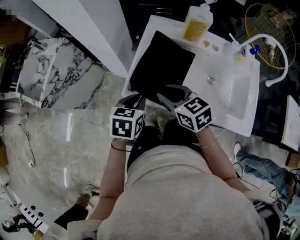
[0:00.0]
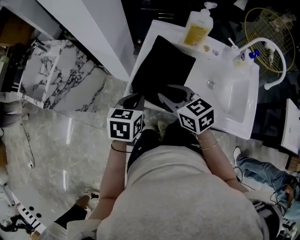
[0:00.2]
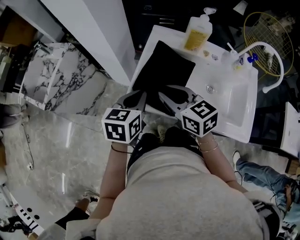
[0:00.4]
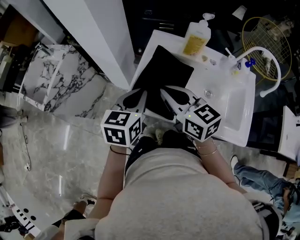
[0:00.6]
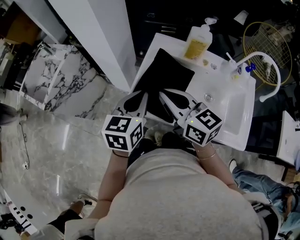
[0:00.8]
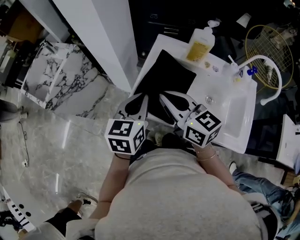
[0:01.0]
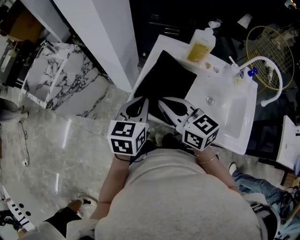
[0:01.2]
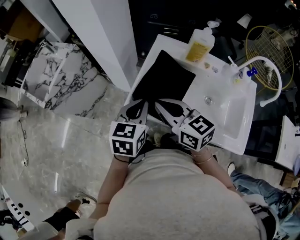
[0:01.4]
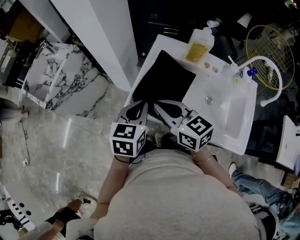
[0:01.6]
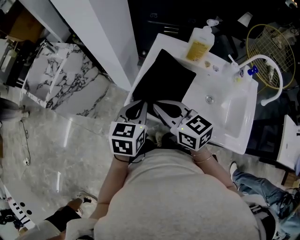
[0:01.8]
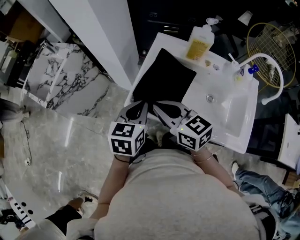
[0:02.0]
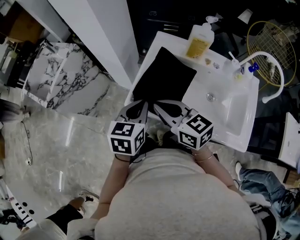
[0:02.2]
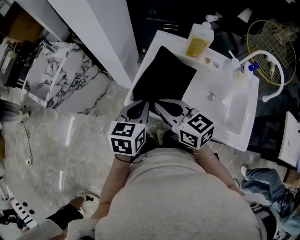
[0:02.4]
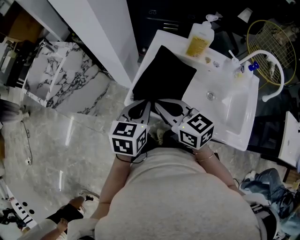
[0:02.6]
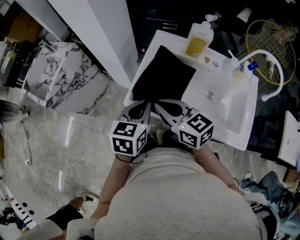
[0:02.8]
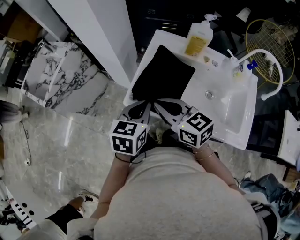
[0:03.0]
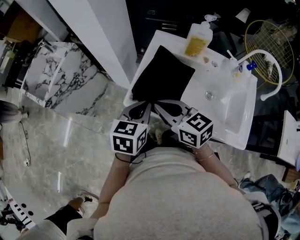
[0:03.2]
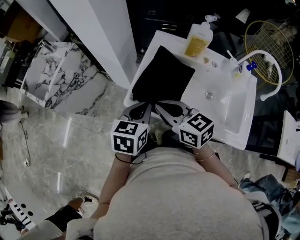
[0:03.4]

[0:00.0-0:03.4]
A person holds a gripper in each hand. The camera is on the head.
0.0 to 1.6 s: The grippers both shift upward by about 10 cm. The right gripper closes its fingers.
1.6 to 3.4 s: The grippers move only a little.

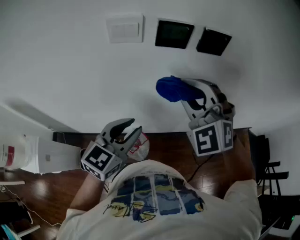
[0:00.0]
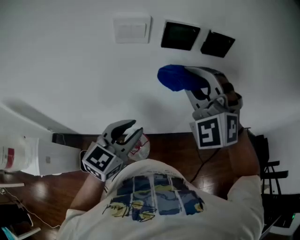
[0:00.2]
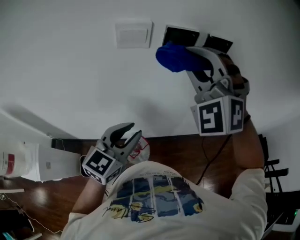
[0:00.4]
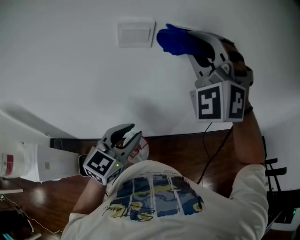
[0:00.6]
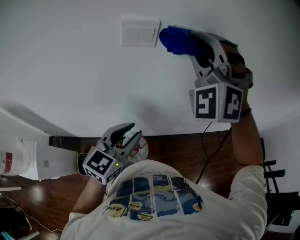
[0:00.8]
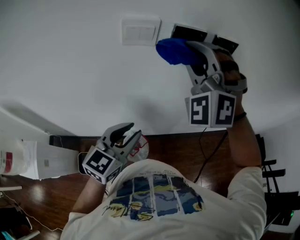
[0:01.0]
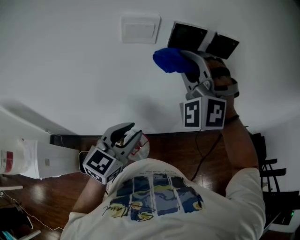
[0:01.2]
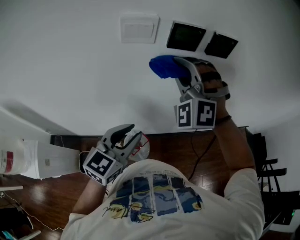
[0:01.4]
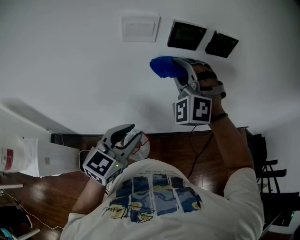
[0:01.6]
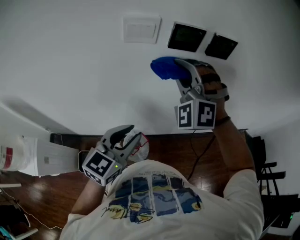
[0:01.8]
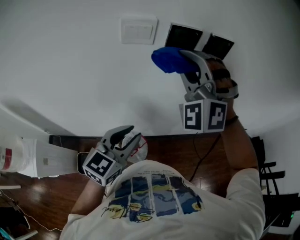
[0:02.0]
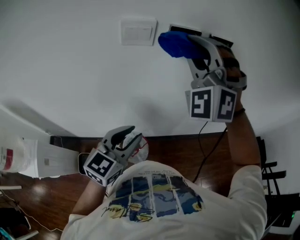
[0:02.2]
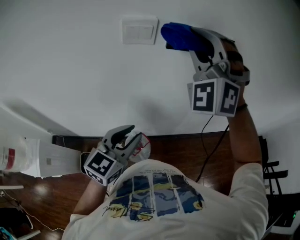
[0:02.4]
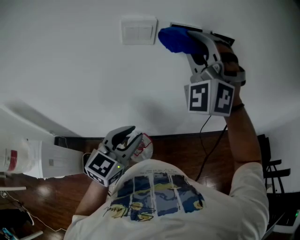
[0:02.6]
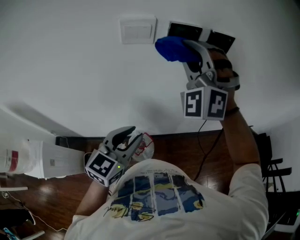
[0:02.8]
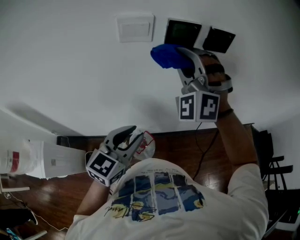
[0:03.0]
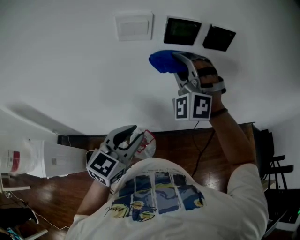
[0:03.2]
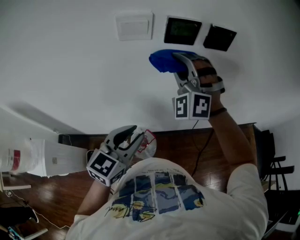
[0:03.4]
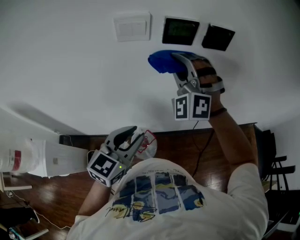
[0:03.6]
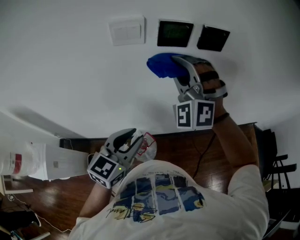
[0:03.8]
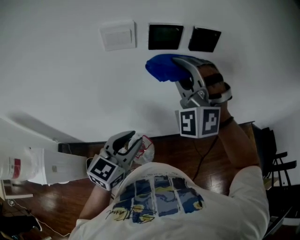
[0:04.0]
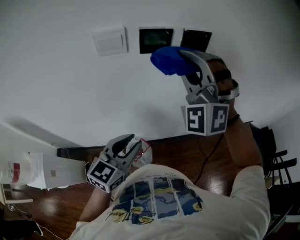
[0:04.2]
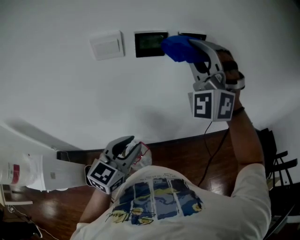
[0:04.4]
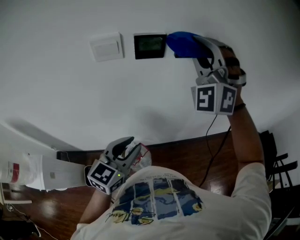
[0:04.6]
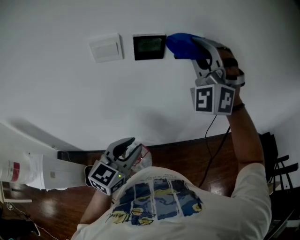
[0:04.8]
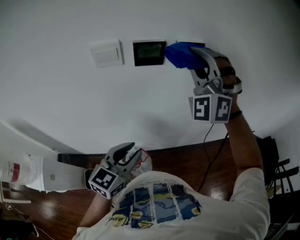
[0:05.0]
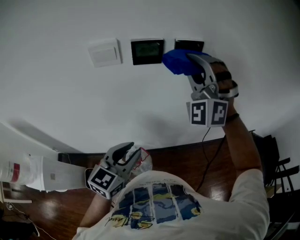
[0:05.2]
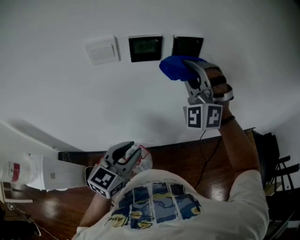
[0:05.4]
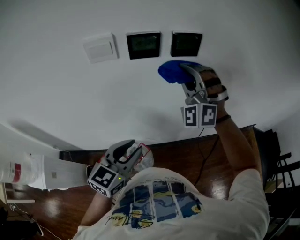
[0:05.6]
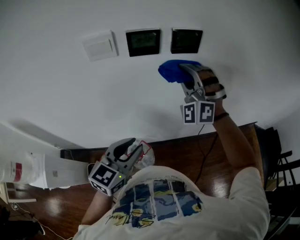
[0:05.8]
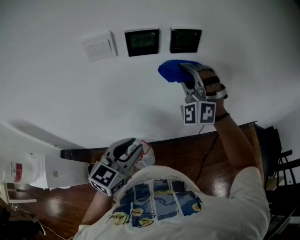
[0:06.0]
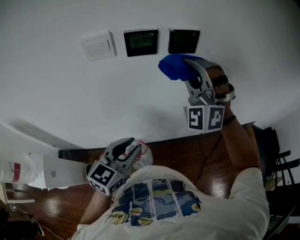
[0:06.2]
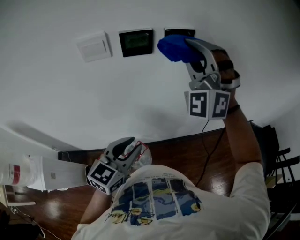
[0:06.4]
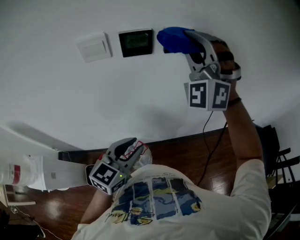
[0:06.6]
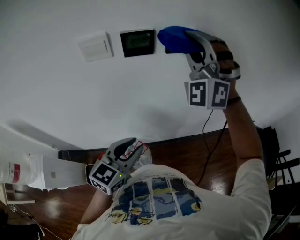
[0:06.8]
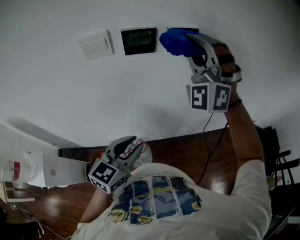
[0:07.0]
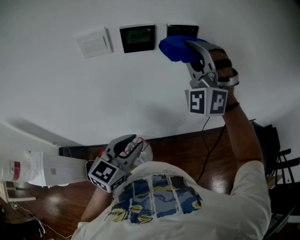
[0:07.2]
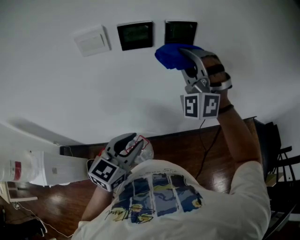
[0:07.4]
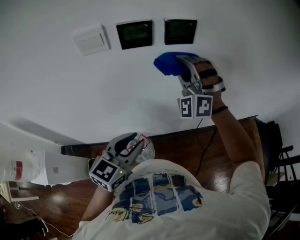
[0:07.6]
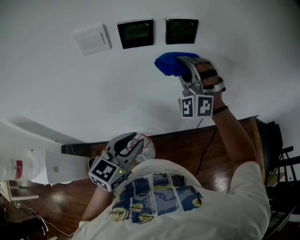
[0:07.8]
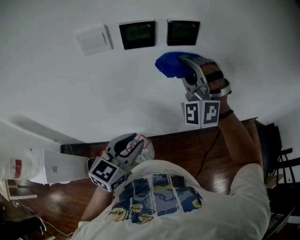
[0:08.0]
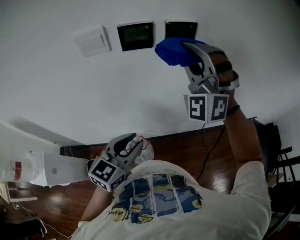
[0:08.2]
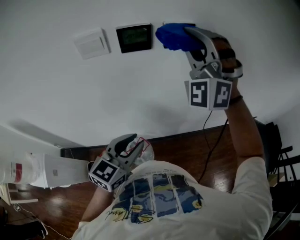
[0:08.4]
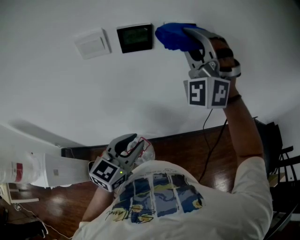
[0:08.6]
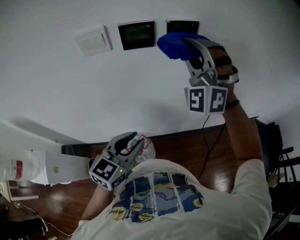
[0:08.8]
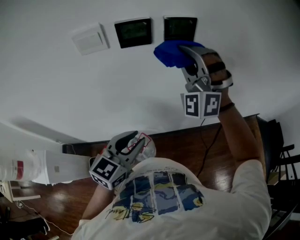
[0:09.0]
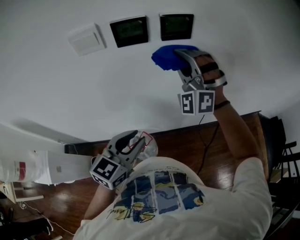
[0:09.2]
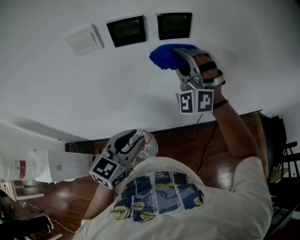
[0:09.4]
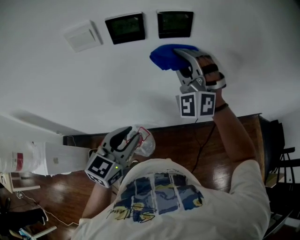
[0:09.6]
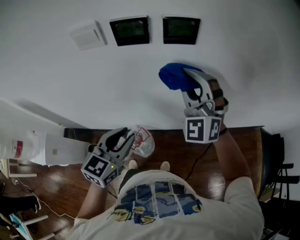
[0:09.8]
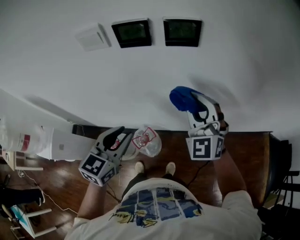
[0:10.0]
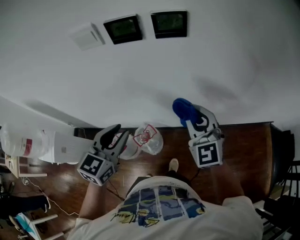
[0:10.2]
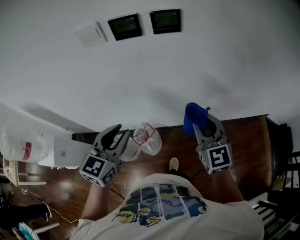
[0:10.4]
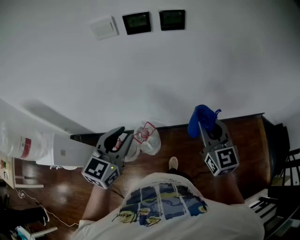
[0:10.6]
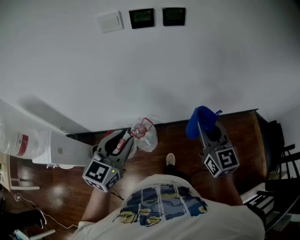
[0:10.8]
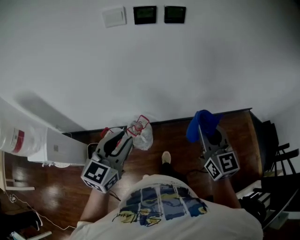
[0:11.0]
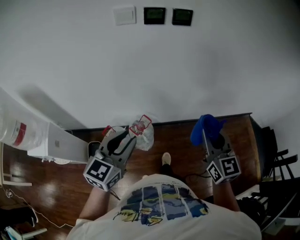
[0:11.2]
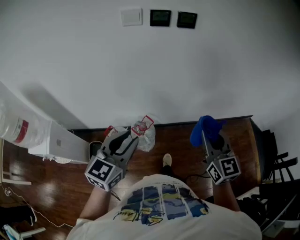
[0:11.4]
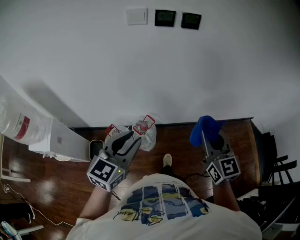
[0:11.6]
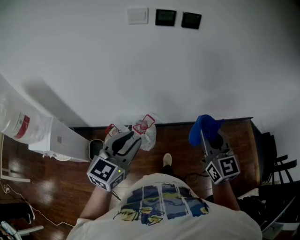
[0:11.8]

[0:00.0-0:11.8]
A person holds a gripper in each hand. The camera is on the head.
0.0 to 1.4 s: The right gripper goes roughly 10 cm to the left and forward, travels upward and back again, some 10 cm each way, and changes its angle by about 20 degrees.
1.4 to 3.0 s: The right gripper reaches roughly 10 cm upward, then returns.
3.0 to 4.4 s: The left gripper is displaced to the right by about 5 cm; the right gripper heads to the right and upward, covering about 15 cm.
4.4 to 6.0 s: The right gripper shifts roughly 10 cm downward.
6.0 to 7.4 s: The right gripper travels upward and back again, about 15 cm each way.
7.4 to 8.8 s: The right gripper goes up and down, some 15 cm each way, reversing 2 times.
8.8 to 10.4 s: The right gripper travels downward, backward and to the right by approximately 30 cm, and rolls clockwise, seen from behind, by roughly 70 degrees; the left gripper changes place by roughly 5 cm.
10.4 to 11.8 s: The two grippers go some 20 cm backward.

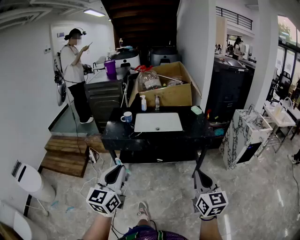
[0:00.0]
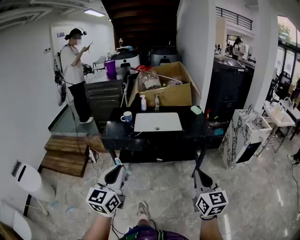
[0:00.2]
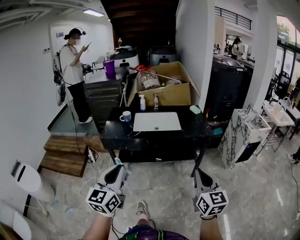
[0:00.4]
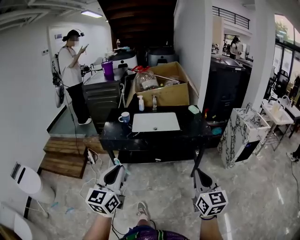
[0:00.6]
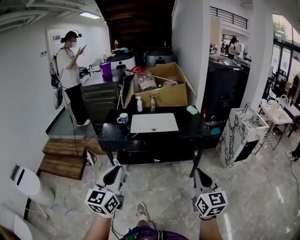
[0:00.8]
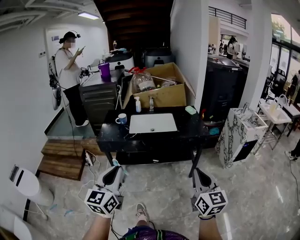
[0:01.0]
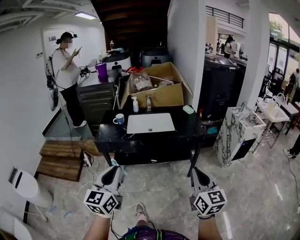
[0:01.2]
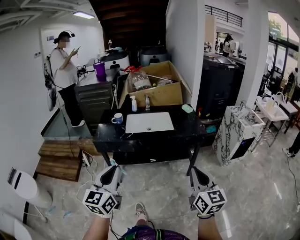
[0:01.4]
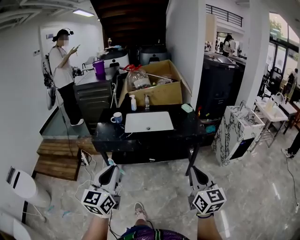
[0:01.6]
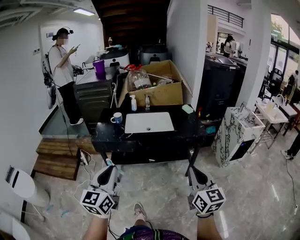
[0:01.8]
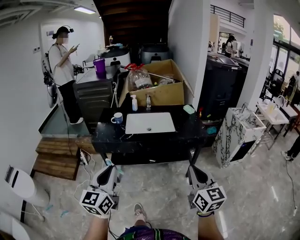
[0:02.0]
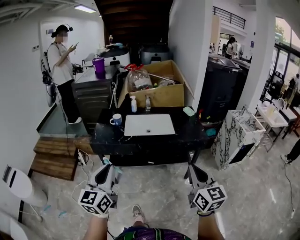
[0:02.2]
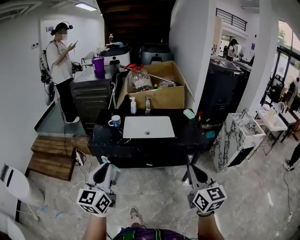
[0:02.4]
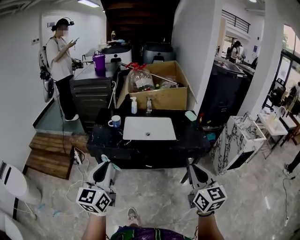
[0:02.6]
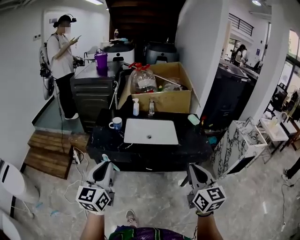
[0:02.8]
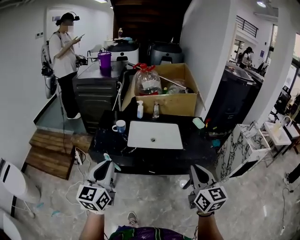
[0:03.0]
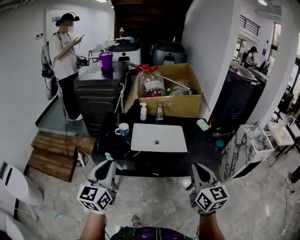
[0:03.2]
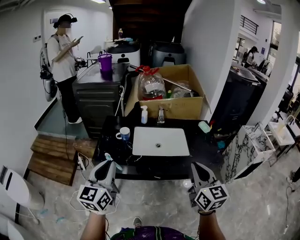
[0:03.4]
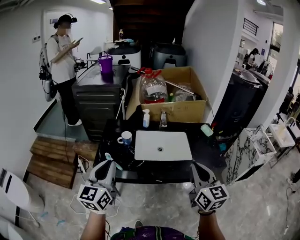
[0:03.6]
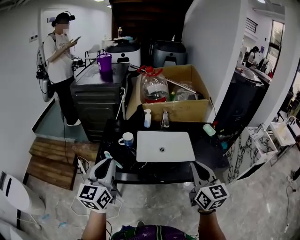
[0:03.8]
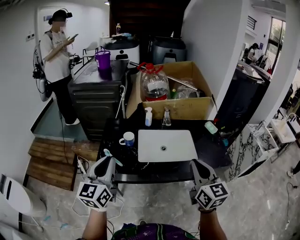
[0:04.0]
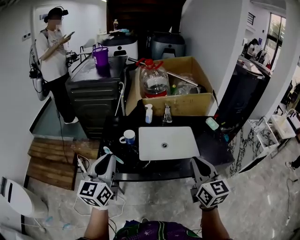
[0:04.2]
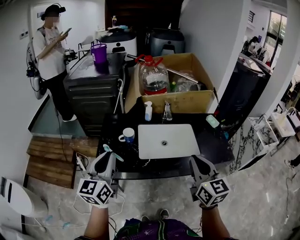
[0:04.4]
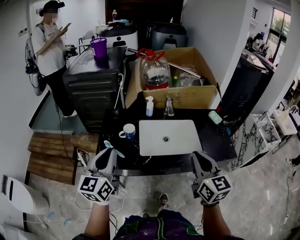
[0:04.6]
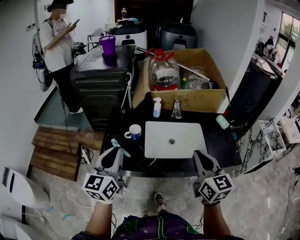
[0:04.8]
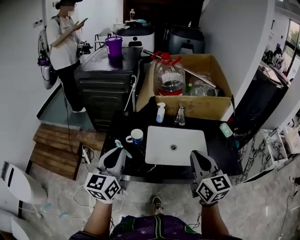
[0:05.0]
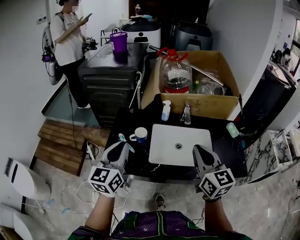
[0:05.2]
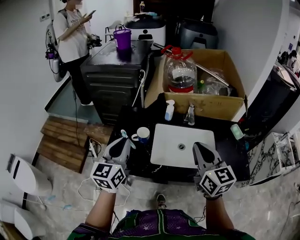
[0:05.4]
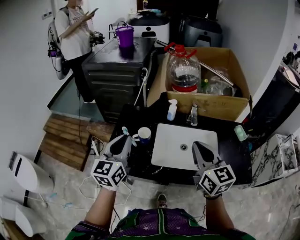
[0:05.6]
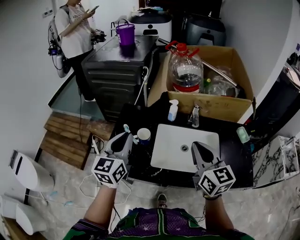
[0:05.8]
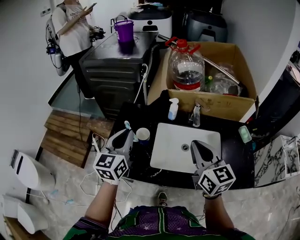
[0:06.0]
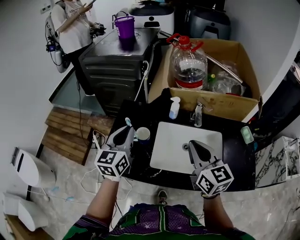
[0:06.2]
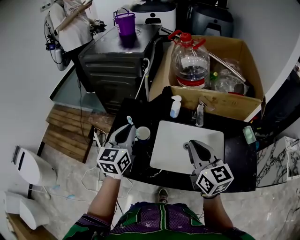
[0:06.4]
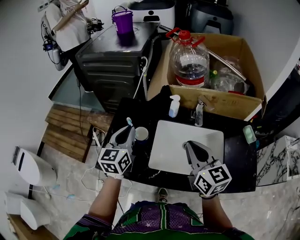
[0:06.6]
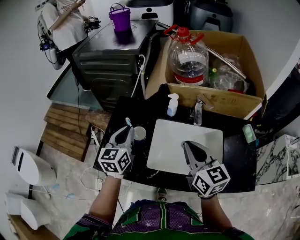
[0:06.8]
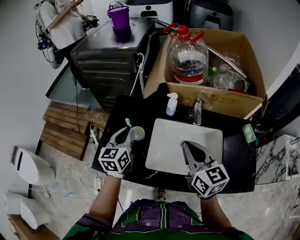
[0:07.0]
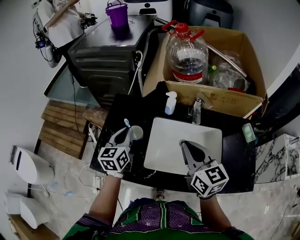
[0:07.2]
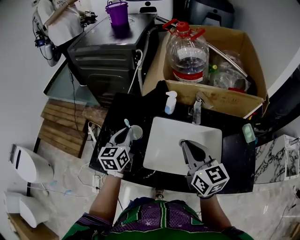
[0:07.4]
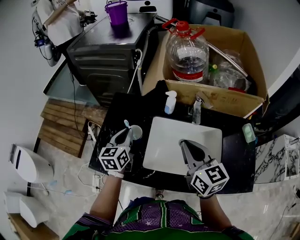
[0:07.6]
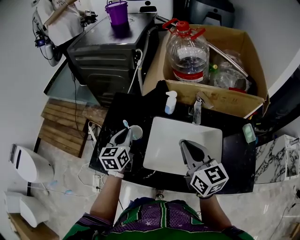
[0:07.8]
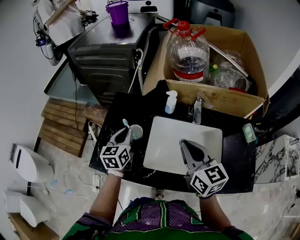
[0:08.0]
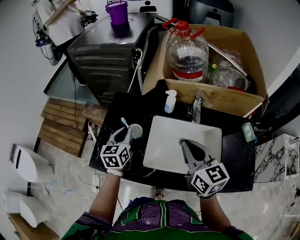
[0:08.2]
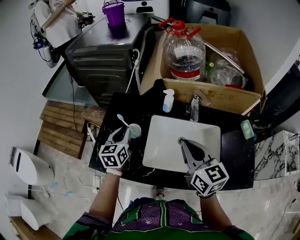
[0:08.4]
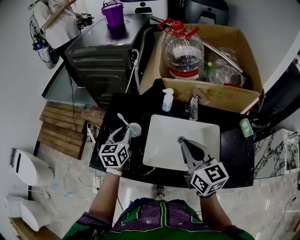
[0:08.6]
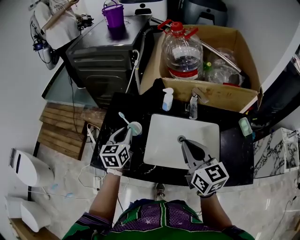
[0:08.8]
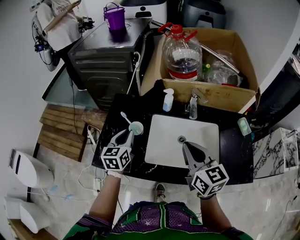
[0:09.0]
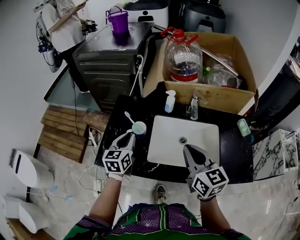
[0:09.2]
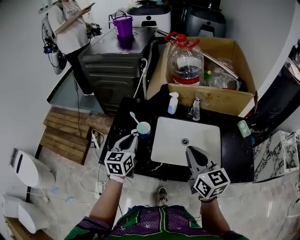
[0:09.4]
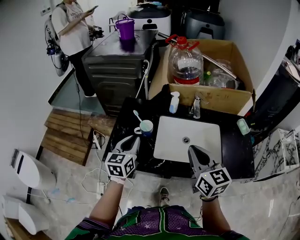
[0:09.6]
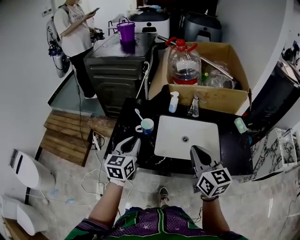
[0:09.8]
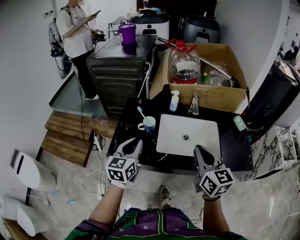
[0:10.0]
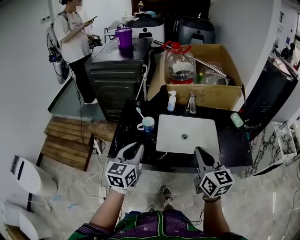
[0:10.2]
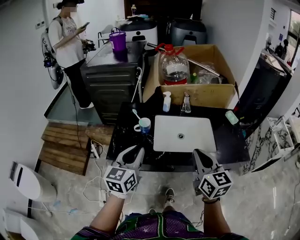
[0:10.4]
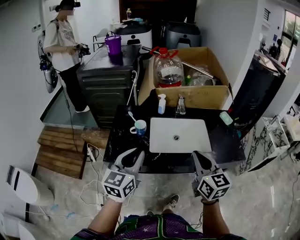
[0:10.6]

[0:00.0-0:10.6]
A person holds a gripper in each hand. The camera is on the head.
0.0 to 1.6 s: There are only small adjustments of the grippers.
1.6 to 3.0 s: The two grippers go some 20 cm forward.
3.0 to 4.6 s: The two grippers go some 25 cm forward and to the left.
4.6 to 6.0 s: Both grippers travel together forward, some 20 cm.
6.0 to 7.6 s: The right gripper is displaced forward and downward by some 10 cm. Meanwhile the left gripper shifts about 15 cm downward and forward.
7.6 to 9.0 s: The right gripper heads backward, covering approximately 5 cm.
9.0 to 10.6 s: The right gripper travels backward by approximately 20 cm. Meanwhile the left gripper shifts some 30 cm backward and upward, and swivels roughly 20 degrees.
